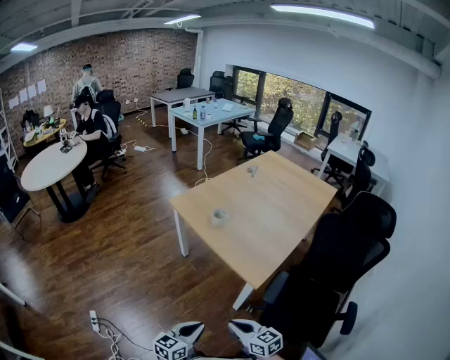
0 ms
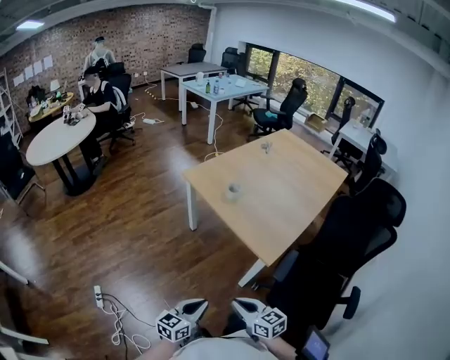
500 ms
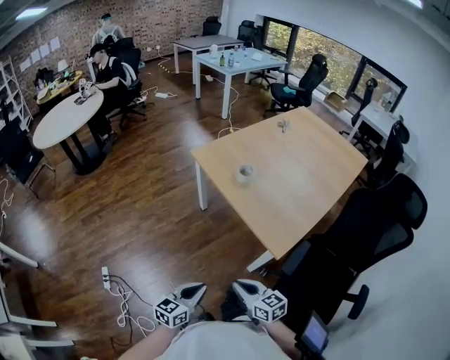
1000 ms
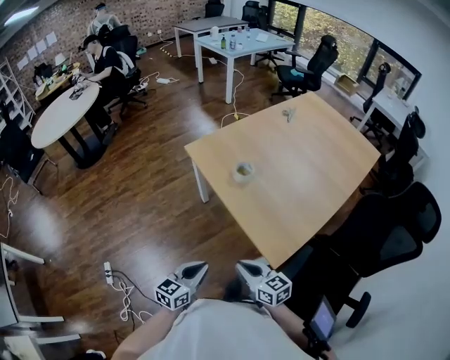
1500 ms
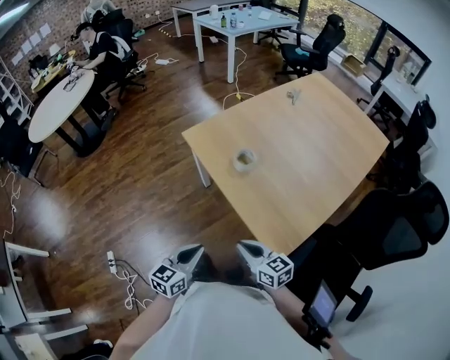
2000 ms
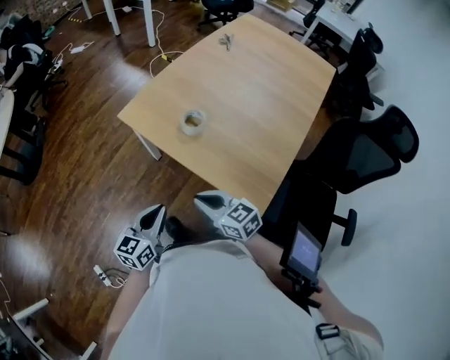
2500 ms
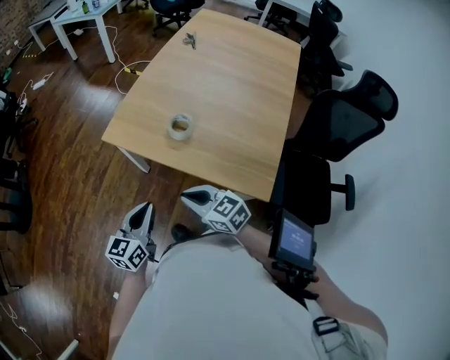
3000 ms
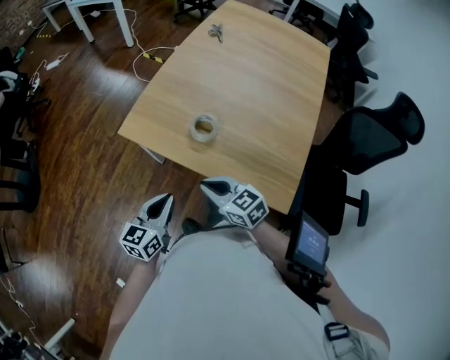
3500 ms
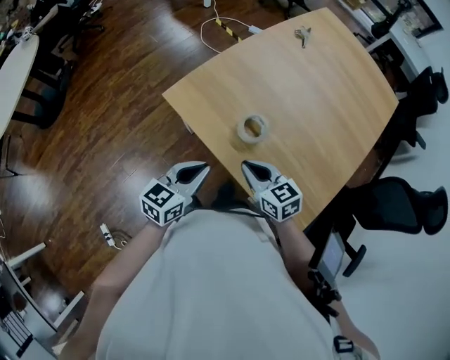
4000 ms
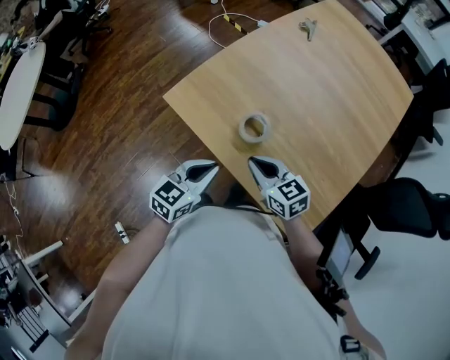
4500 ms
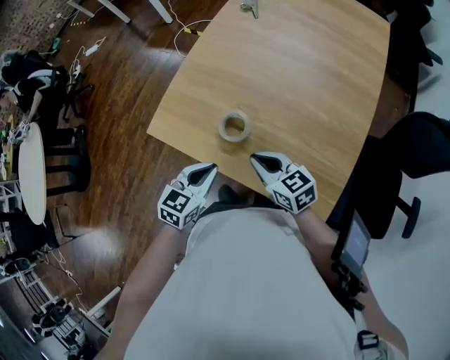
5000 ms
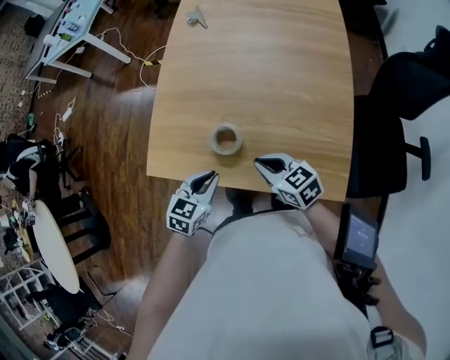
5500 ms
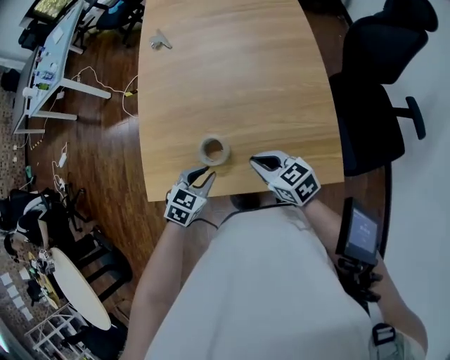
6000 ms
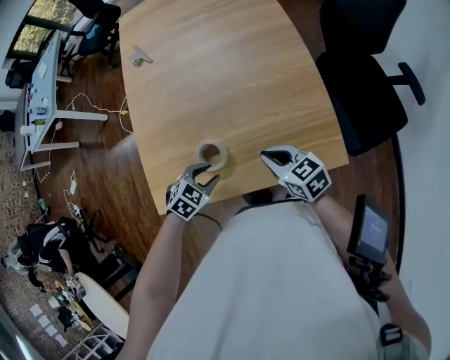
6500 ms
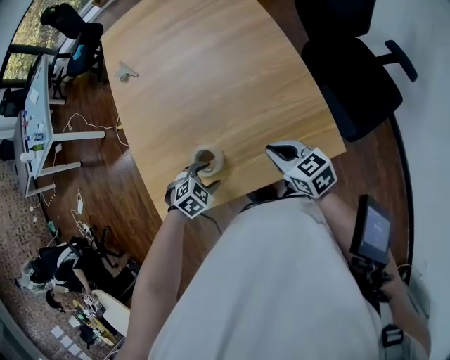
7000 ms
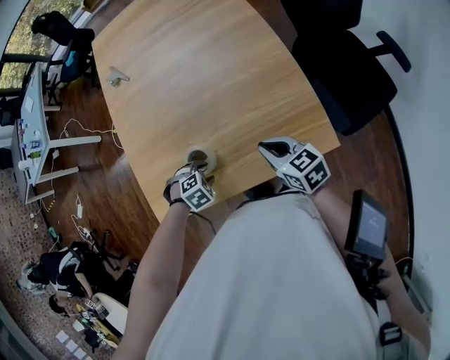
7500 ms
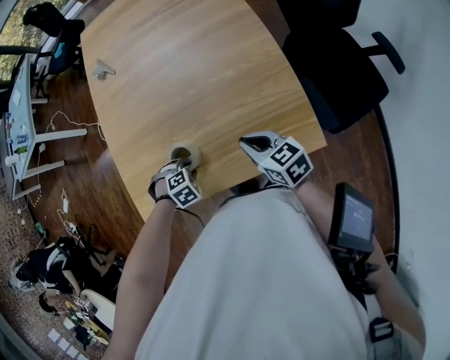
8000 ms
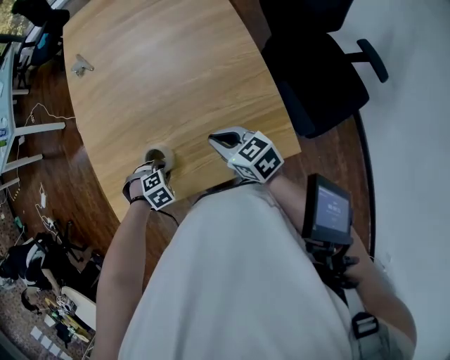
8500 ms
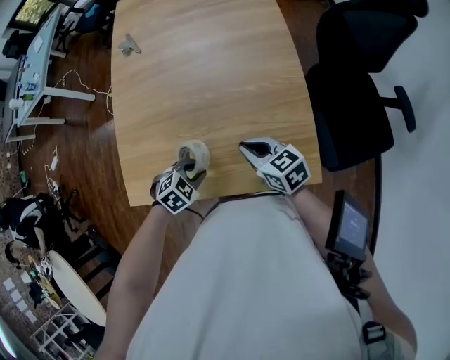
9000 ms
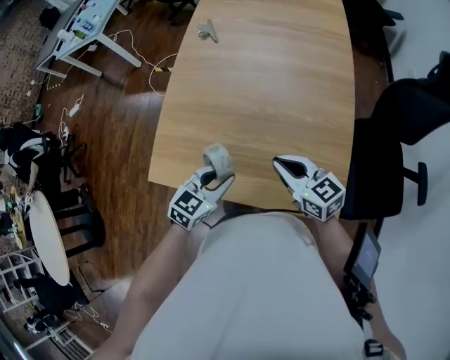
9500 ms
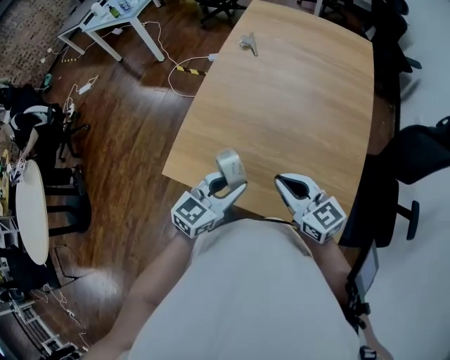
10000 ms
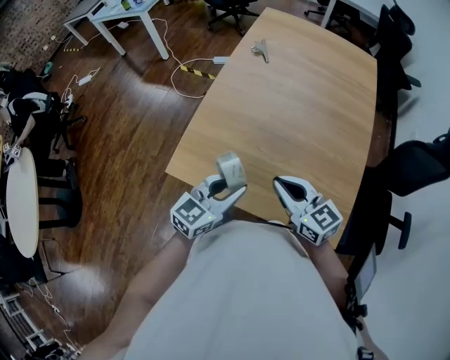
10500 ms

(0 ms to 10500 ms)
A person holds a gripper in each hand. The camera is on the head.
0 ms - 2000 ms: The two grippers go about 25 cm forward.
2000 ms - 4000 ms: Both grippers travel together forward, approximately 25 cm.
4000 ms - 6500 ms: The right gripper shifts by about 15 cm, and rotates approximately 50 degrees. The left gripper changes place by approximately 20 cm, angles its fingers downward, by some 40 degrees, and opens up.
6500 ms - 8500 ms: The right gripper ends up roughly 5 cm from where it was, while the left gripper is displaced downward by approximately 10 cm, changes its angle by roughly 40 degrees, and opens and closes again.
8500 ms - 10500 ms: The left gripper shifts about 25 cm upward, and tilts its fingers roughly 70 degrees upward. Meanwhile the right gripper goes some 15 cm upward, and changes its angle by about 30 degrees.

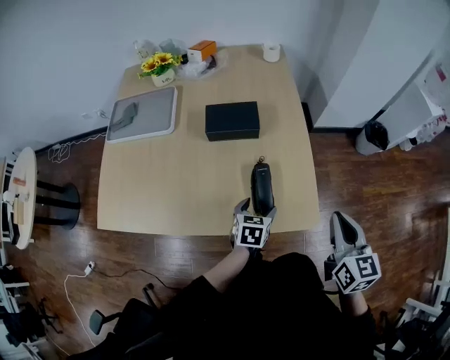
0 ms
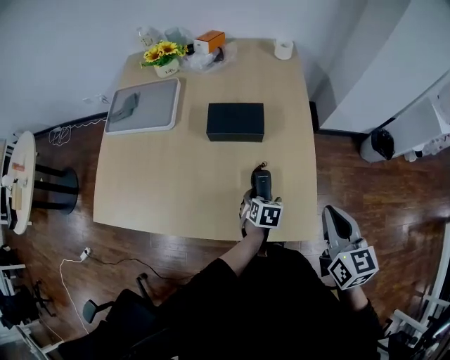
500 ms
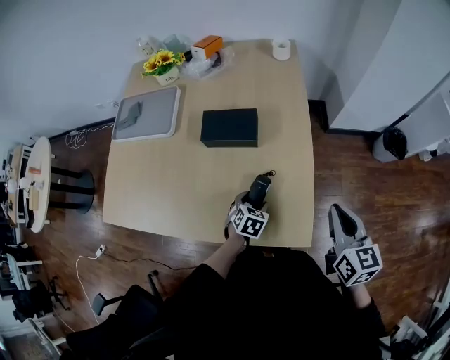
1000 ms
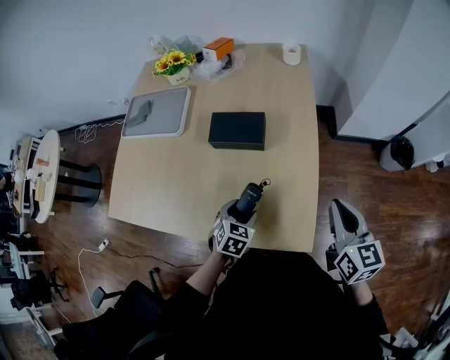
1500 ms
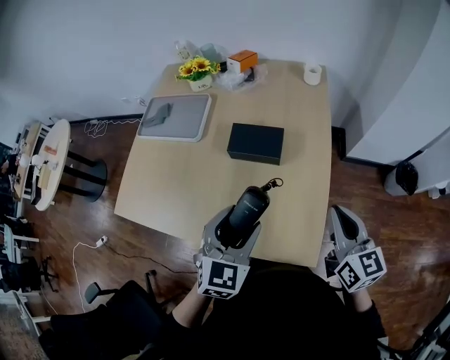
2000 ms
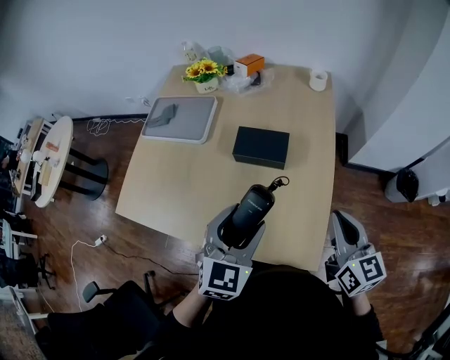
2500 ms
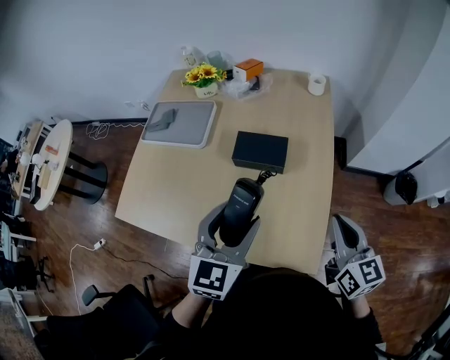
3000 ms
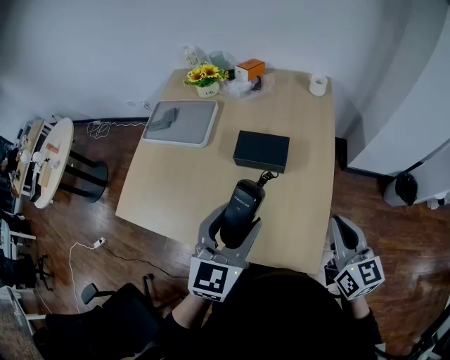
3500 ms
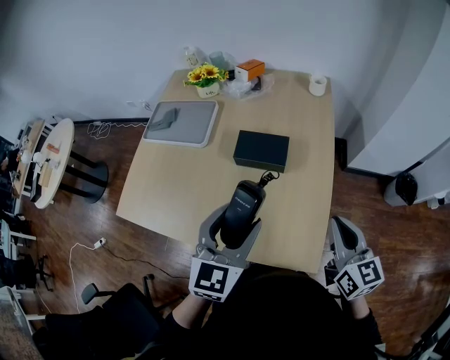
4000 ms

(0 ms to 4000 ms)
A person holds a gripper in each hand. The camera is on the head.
0 ms - 2000 ms: The right gripper moves forward, approximately 15 cm, and rotates approximately 20 degrees. The left gripper is displaced upward by approximately 25 cm, and rotates approximately 30 degrees.
2000 ms - 4000 ms: The left gripper heads upward, covering about 5 cm.

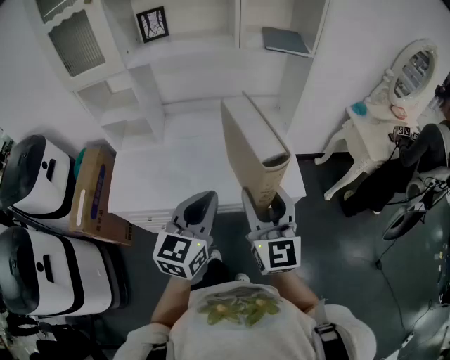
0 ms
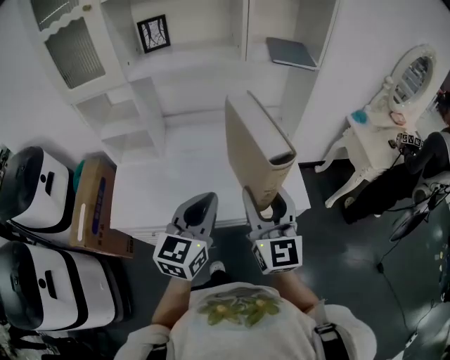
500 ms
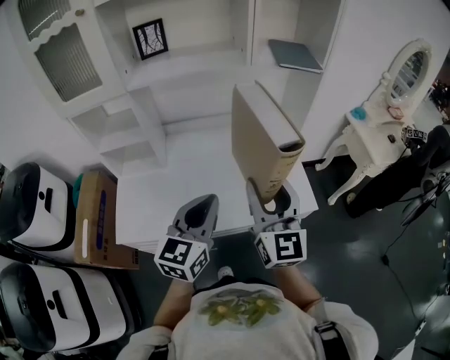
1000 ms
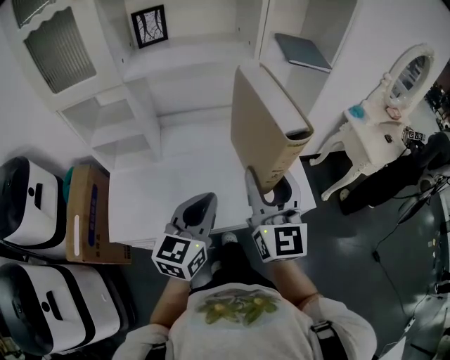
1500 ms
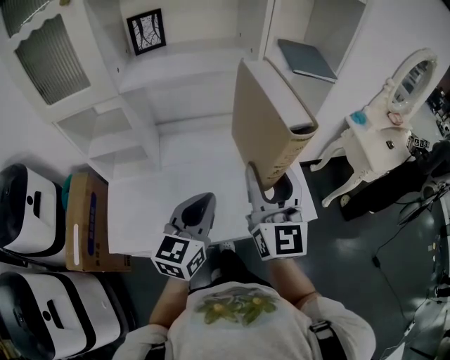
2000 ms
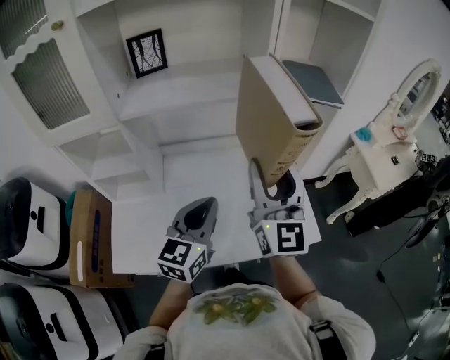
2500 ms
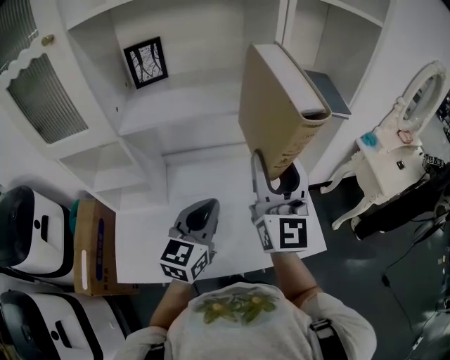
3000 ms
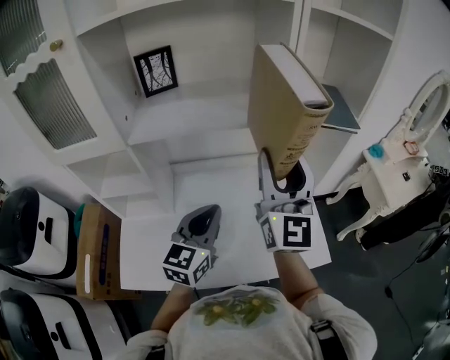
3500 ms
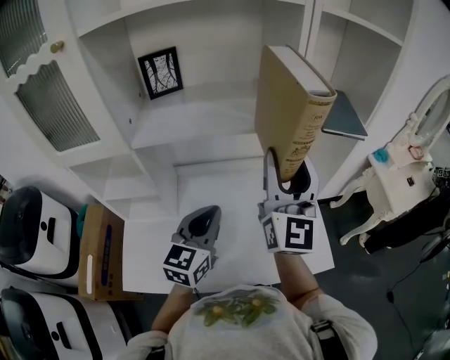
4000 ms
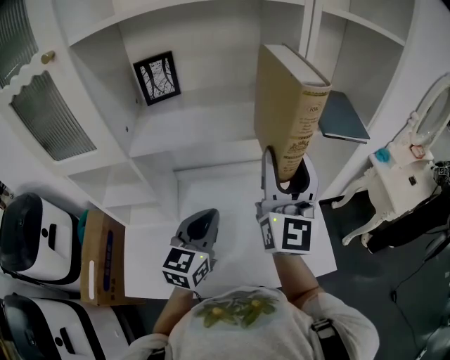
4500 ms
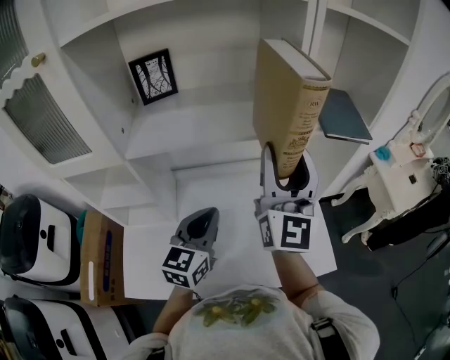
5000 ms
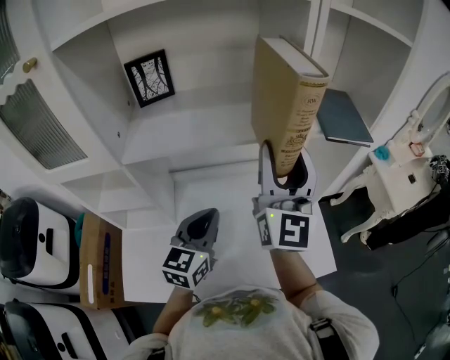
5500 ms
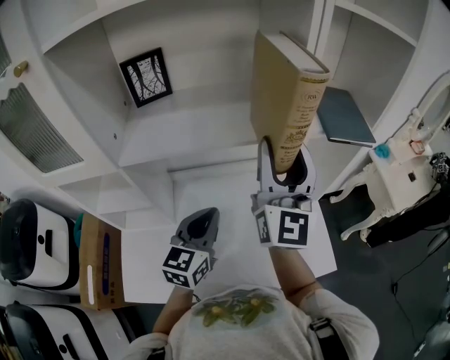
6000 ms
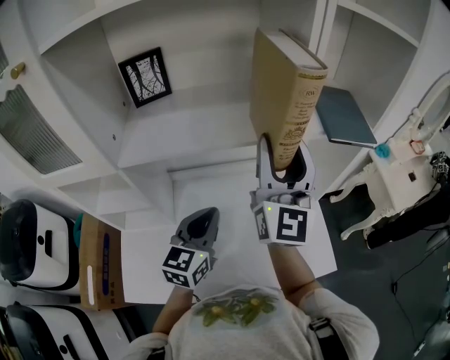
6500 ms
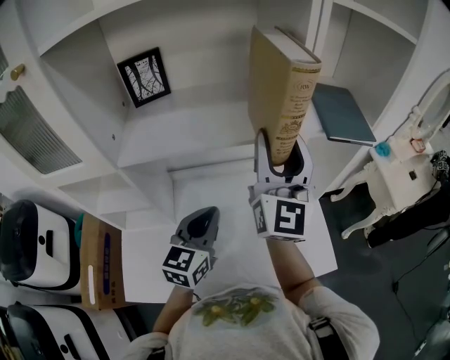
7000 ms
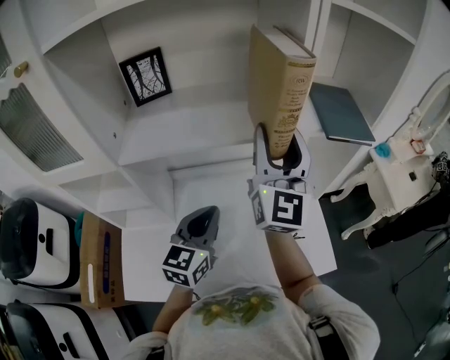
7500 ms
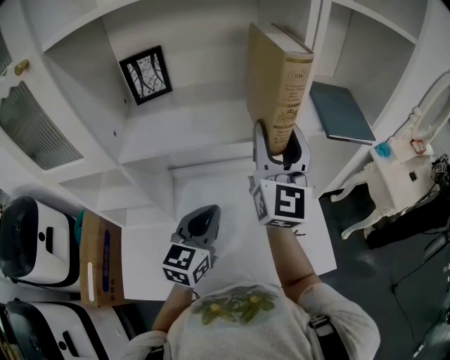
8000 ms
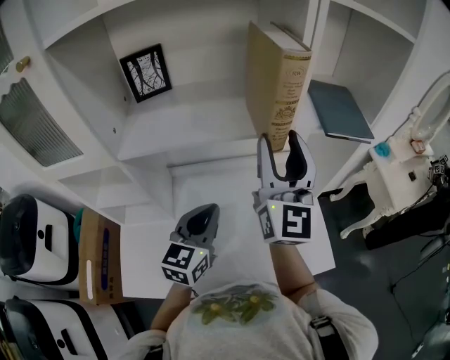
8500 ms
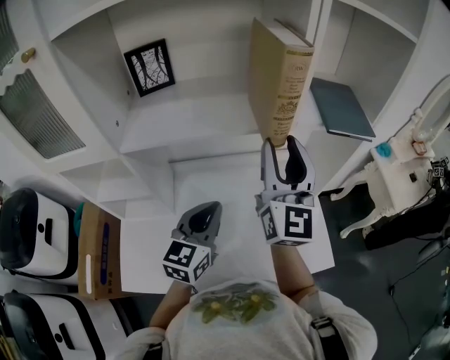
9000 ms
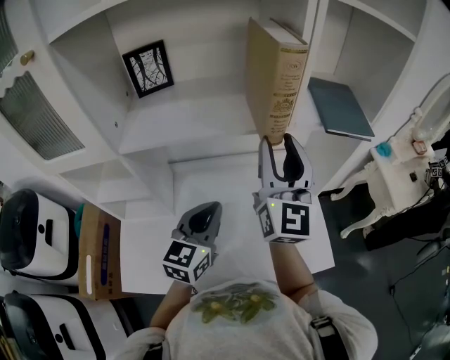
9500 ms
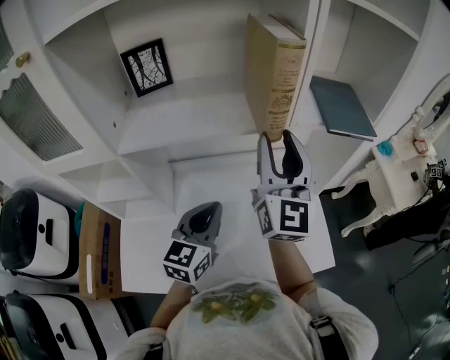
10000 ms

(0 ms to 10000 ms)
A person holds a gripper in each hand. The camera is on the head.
0 ms - 2000 ms: The two grippers go approximately 20 cm forward and to the left.
2000 ms - 4000 ms: The left gripper is displaced forward by some 15 cm, while the right gripper moves forward and upward, roughly 20 cm.
4000 ms - 6000 ms: Both grippers travel together forward, some 5 cm.
6000 ms - 10000 ms: The grippers make only small movements.

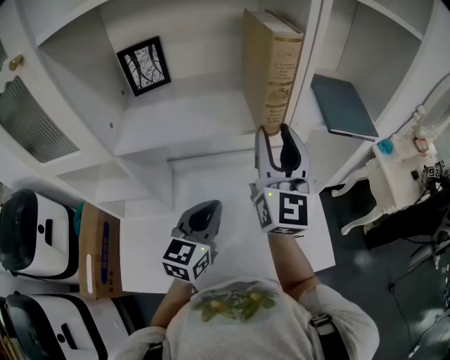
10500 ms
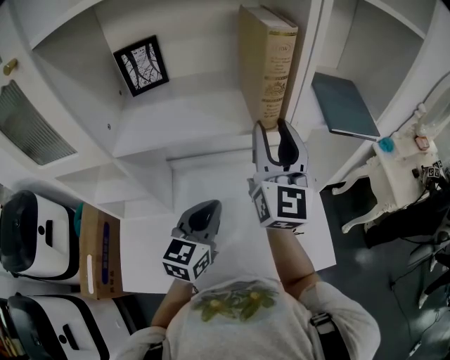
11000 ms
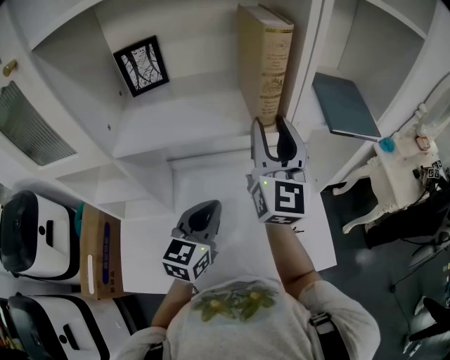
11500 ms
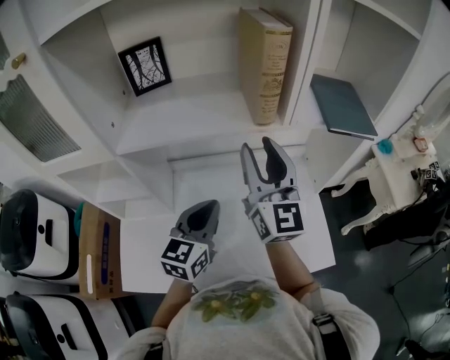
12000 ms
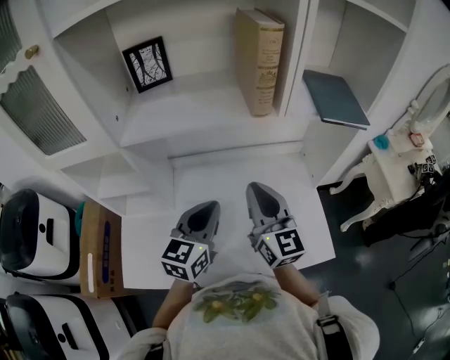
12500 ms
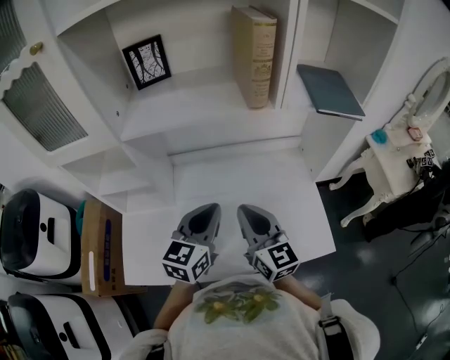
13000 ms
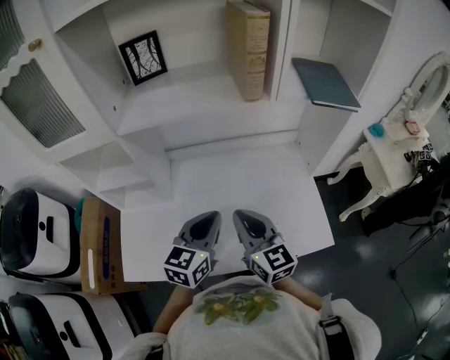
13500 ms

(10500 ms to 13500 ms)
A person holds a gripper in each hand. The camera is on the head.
10500 ms - 12000 ms: There are only small adjustments of the grippers.
12000 ms - 13500 ms: The left gripper heads backward, covering about 10 cm. The right gripper moves backward and downward, roughly 25 cm, rotates approximately 30 degrees, and closes up.
